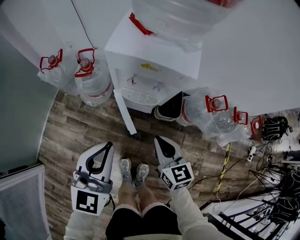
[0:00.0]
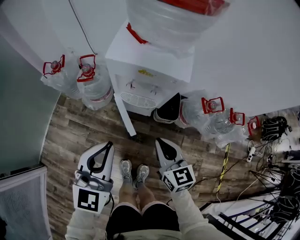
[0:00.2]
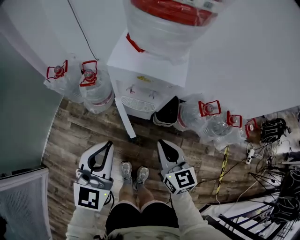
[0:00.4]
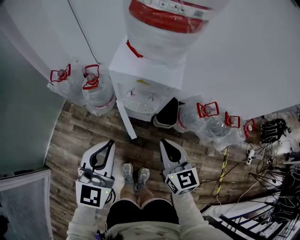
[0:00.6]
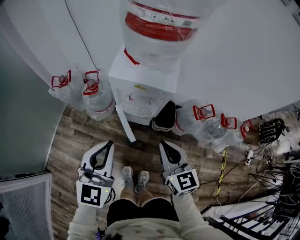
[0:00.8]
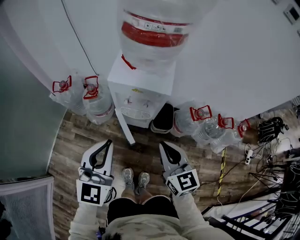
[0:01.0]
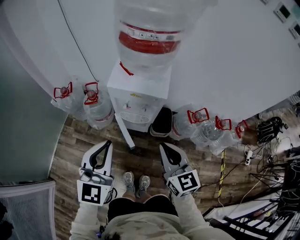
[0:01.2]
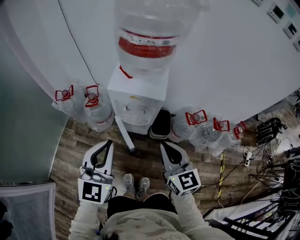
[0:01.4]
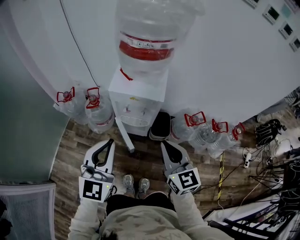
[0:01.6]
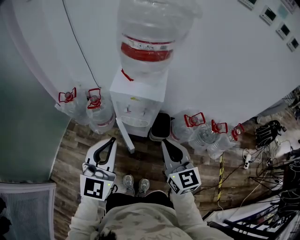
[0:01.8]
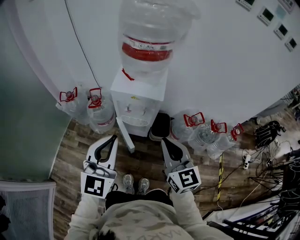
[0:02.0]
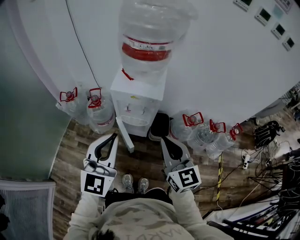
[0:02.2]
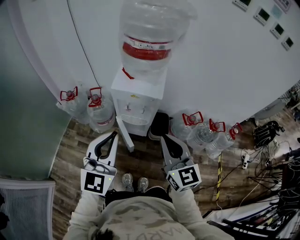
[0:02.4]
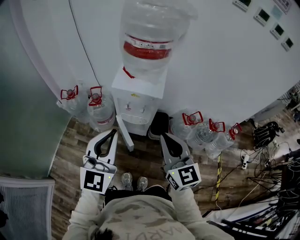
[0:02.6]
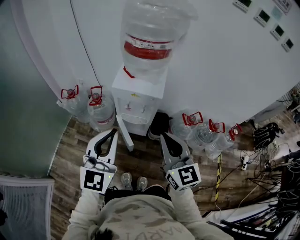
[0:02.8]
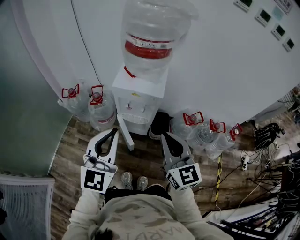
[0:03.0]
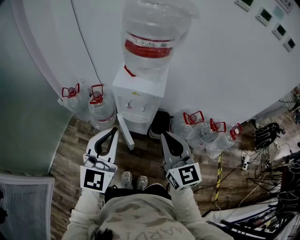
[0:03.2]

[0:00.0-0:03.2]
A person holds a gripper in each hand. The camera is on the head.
0:00.0 to 0:01.6: Both grippers move upward, about 25 cm.
0:01.6 to 0:03.2: The left gripper shifts by about 5 cm. Meanwhile the right gripper goes about 5 cm upward.

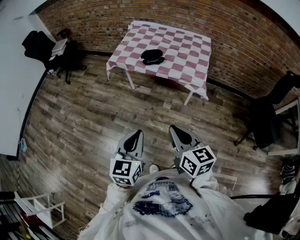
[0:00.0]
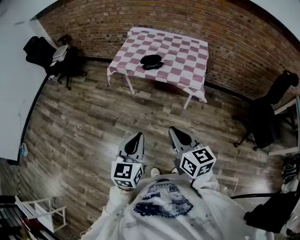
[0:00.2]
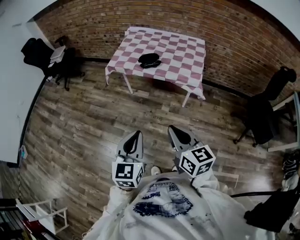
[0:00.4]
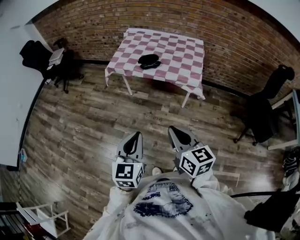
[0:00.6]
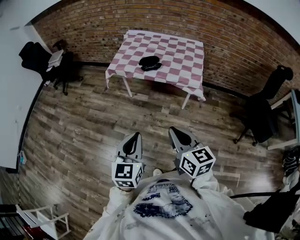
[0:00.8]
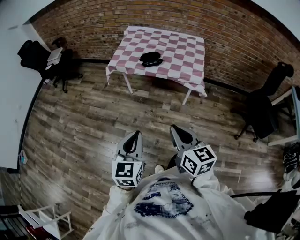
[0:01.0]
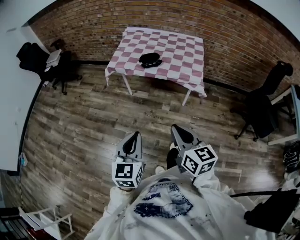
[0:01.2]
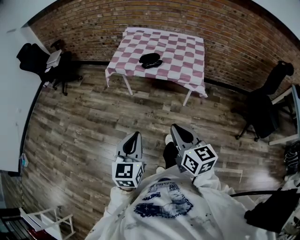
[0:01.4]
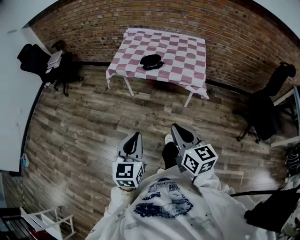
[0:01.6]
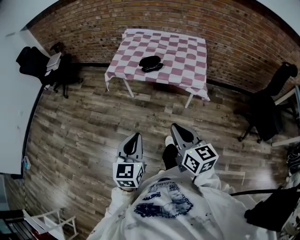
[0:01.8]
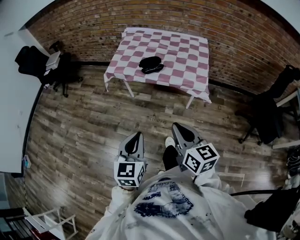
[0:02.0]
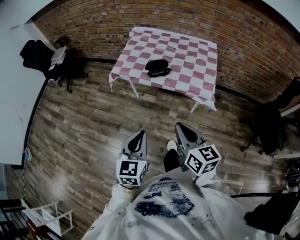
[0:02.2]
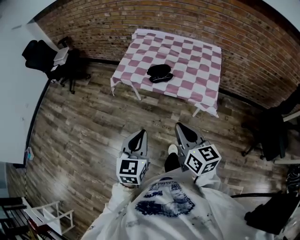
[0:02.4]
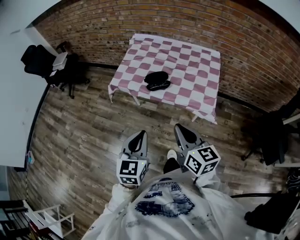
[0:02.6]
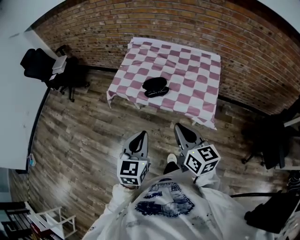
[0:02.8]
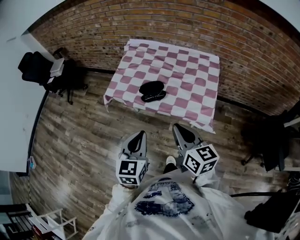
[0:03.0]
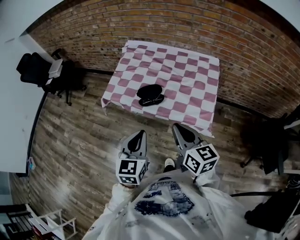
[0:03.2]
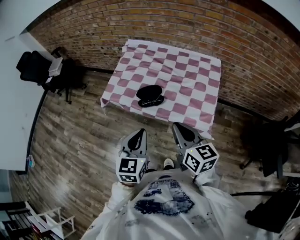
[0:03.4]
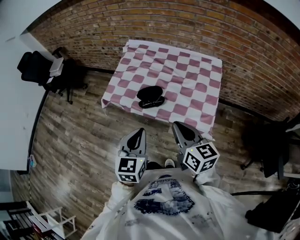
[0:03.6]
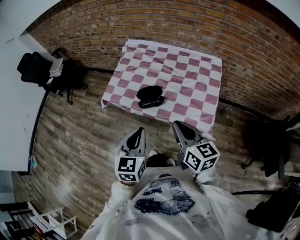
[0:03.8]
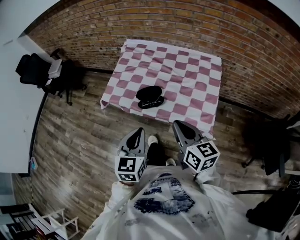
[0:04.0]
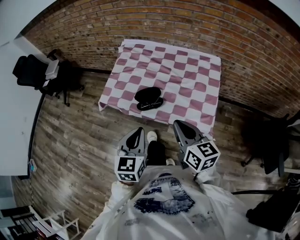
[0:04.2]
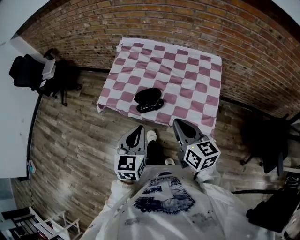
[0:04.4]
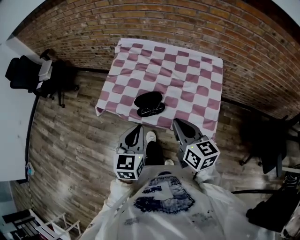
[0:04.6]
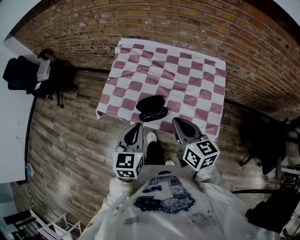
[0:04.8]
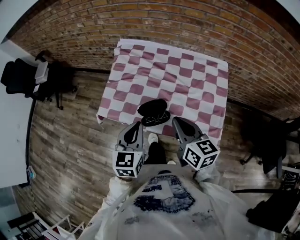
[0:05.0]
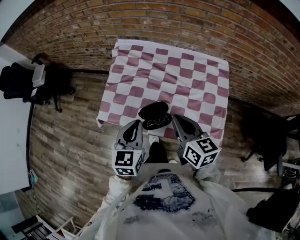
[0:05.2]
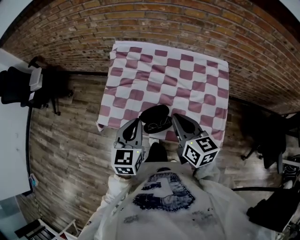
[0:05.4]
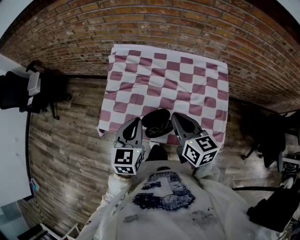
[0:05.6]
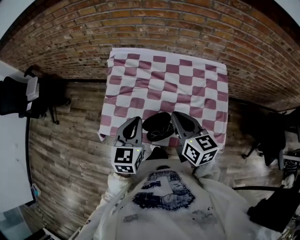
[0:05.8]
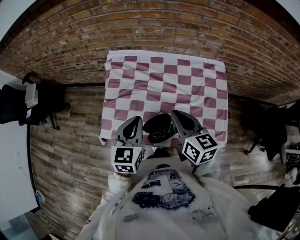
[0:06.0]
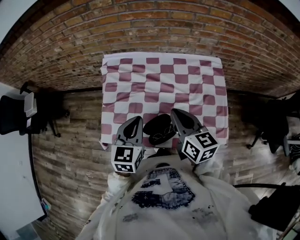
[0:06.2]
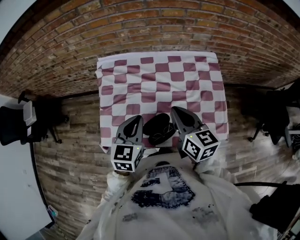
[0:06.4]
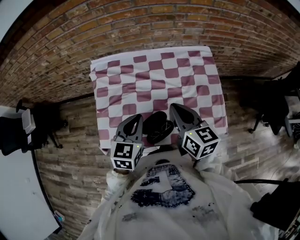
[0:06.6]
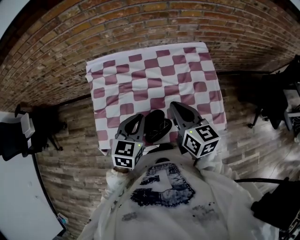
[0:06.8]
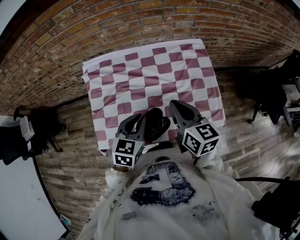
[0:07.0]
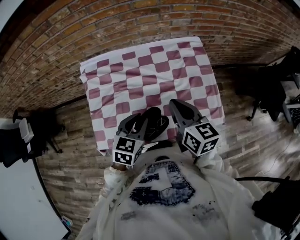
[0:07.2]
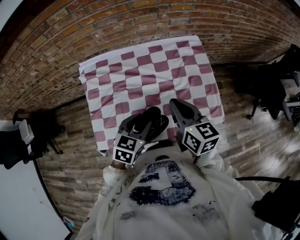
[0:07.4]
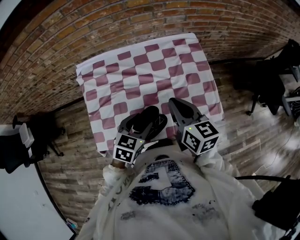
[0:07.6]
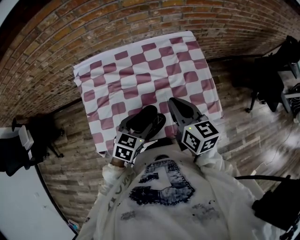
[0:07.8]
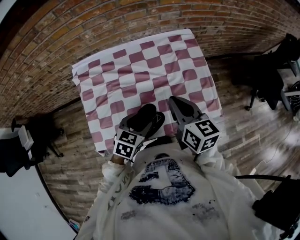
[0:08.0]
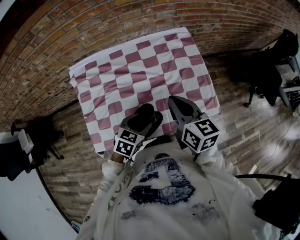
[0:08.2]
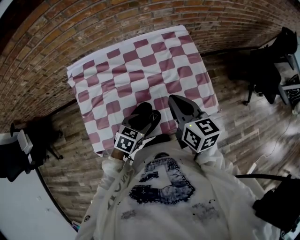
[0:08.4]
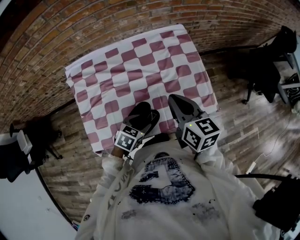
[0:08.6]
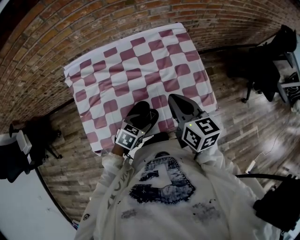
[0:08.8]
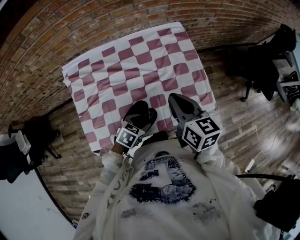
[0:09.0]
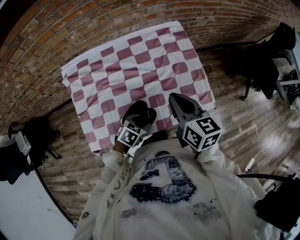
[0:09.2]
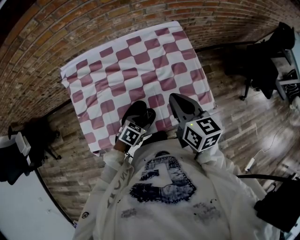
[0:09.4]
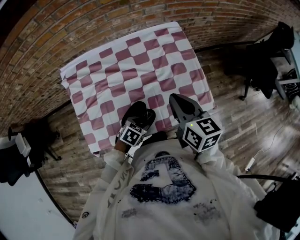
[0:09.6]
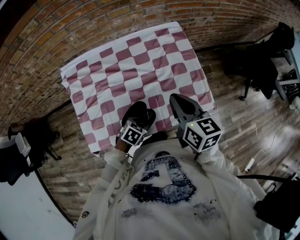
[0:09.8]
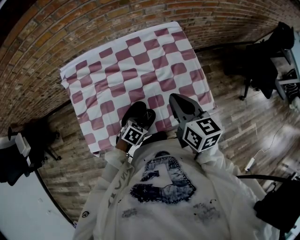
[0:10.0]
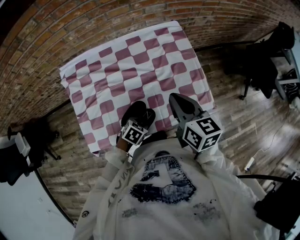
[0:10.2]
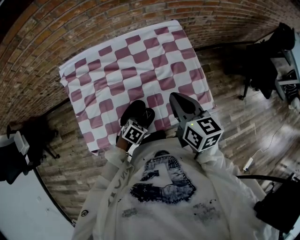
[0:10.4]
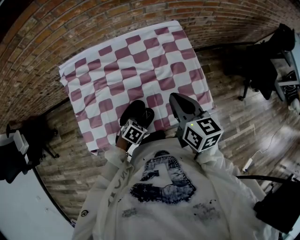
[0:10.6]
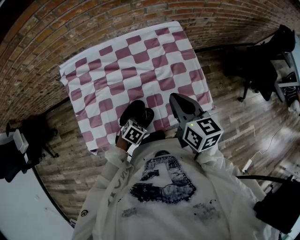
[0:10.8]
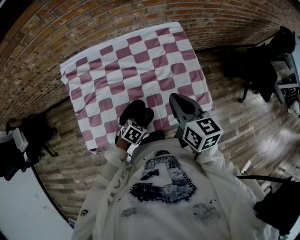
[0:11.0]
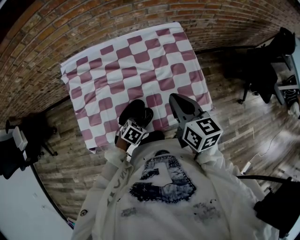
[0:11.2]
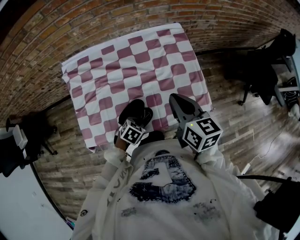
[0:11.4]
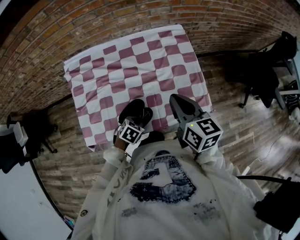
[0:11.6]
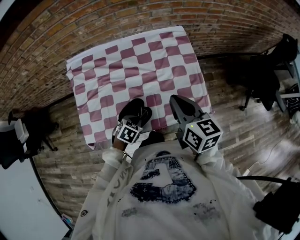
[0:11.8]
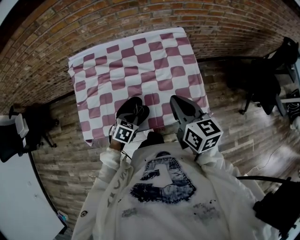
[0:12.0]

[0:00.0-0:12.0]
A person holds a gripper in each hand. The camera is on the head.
0:00.0 to 0:01.6: The left gripper is displaced to the left by some 5 cm.
0:01.6 to 0:03.0: The two grippers go some 30 cm forward.
0:03.0 to 0:04.4: Both grippers move forward, approximately 10 cm.
0:04.4 to 0:06.0: Both grippers move forward, roughly 25 cm.
0:06.0 to 0:07.6: The left gripper heads downward, covering some 10 cm, rotates approximately 40 degrees, and opens; the right gripper shifts by some 5 cm.
0:07.6 to 0:09.0: The right gripper ends up some 5 cm from where it was, while the left gripper travels downward by some 10 cm, and changes its angle by roughly 20 degrees.
0:09.0 to 0:10.4: The left gripper shifts about 5 cm downward, and closes its fingers.
0:10.4 to 0:12.0: The left gripper goes some 5 cm upward.

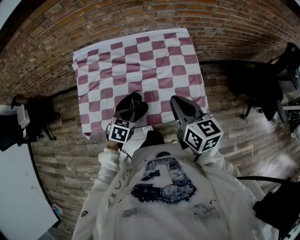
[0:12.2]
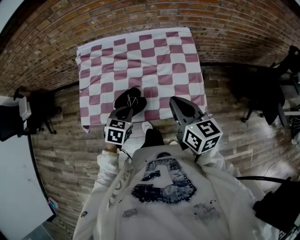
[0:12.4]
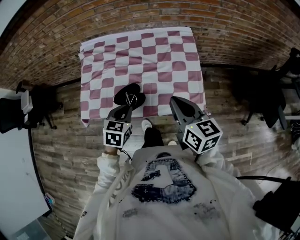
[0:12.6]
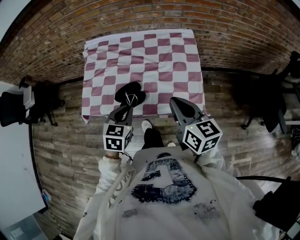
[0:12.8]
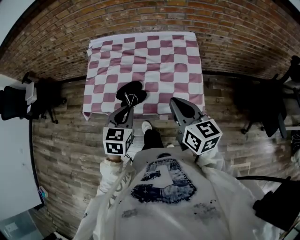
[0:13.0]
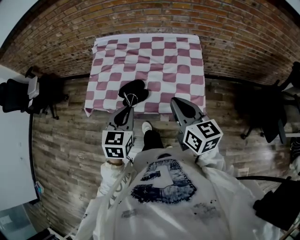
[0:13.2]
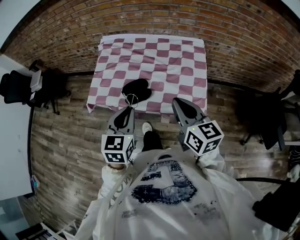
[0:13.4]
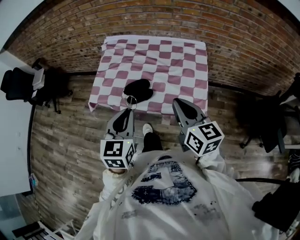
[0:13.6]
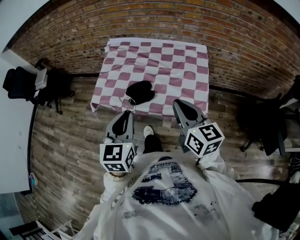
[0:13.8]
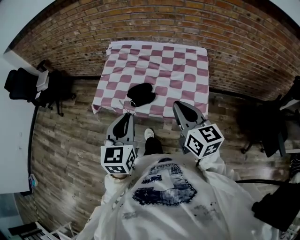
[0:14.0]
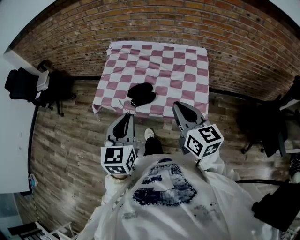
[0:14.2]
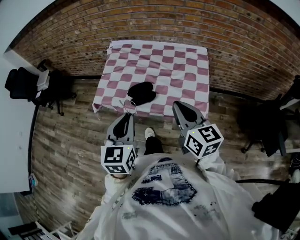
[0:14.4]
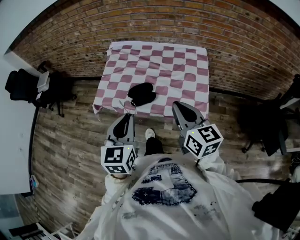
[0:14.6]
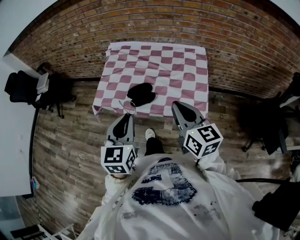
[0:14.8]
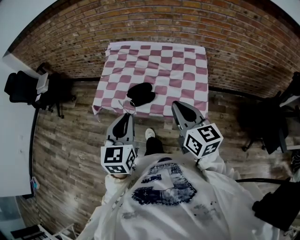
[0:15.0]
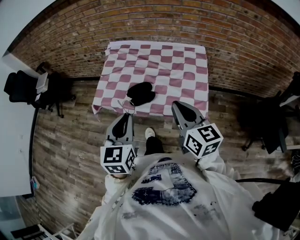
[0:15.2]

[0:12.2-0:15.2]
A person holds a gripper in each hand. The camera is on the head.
0:12.2 to 0:13.8: The right gripper shifts roughly 15 cm backward and upward. The left gripper travels upward and backward by approximately 30 cm, and points its fingers approximately 40 degrees further upward.
0:13.8 to 0:15.2: The grippers make only small movements.

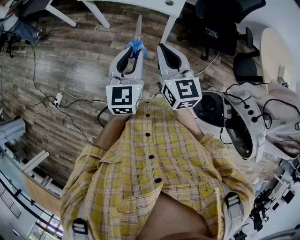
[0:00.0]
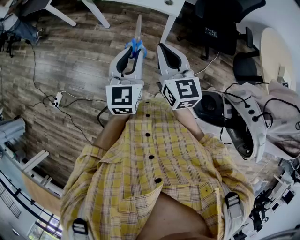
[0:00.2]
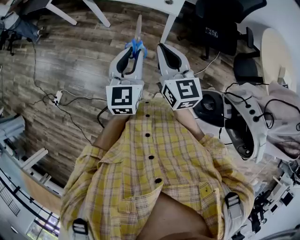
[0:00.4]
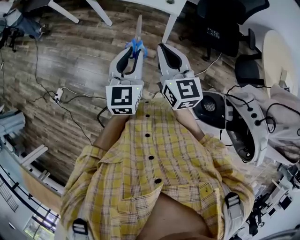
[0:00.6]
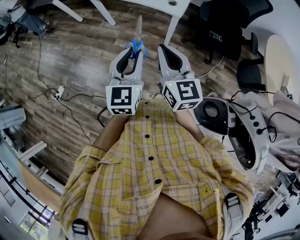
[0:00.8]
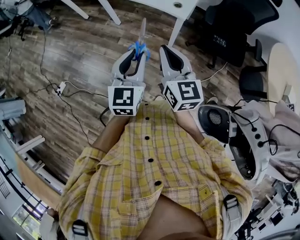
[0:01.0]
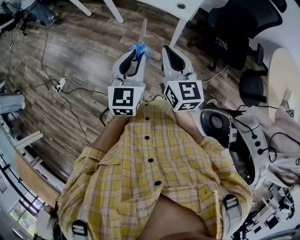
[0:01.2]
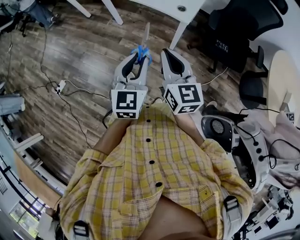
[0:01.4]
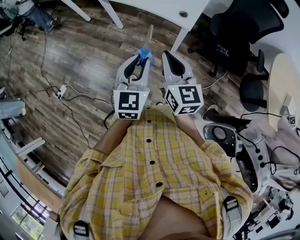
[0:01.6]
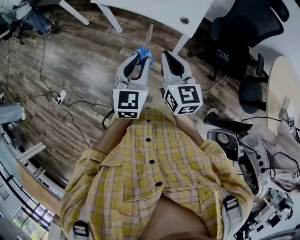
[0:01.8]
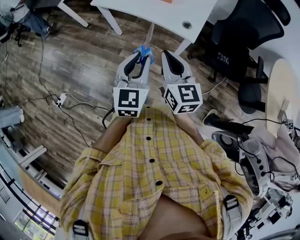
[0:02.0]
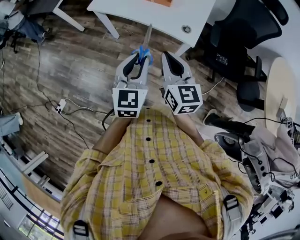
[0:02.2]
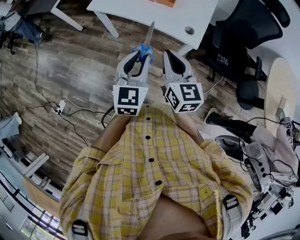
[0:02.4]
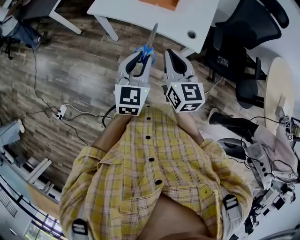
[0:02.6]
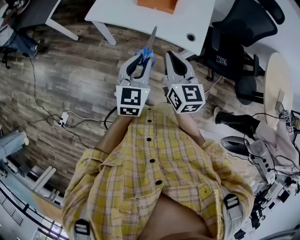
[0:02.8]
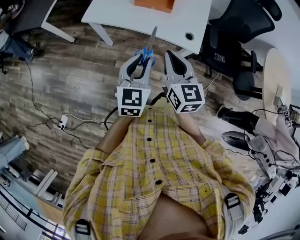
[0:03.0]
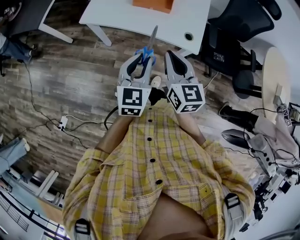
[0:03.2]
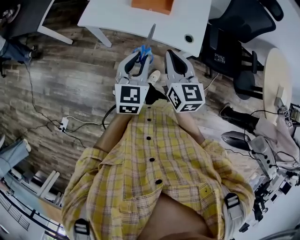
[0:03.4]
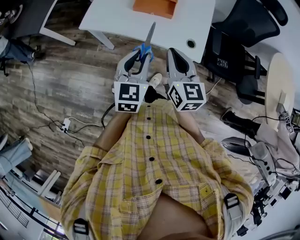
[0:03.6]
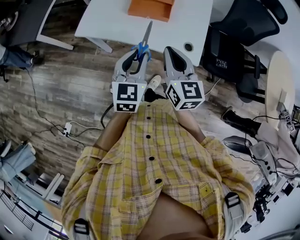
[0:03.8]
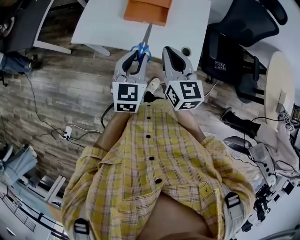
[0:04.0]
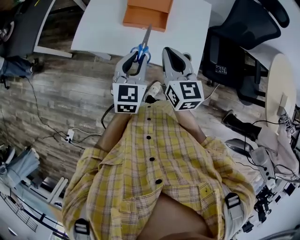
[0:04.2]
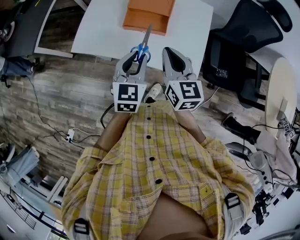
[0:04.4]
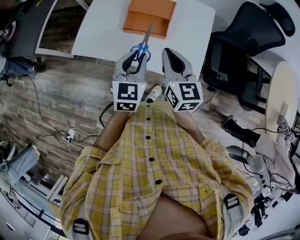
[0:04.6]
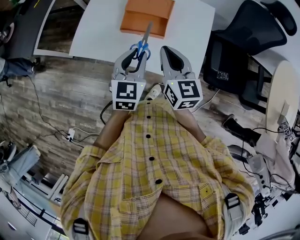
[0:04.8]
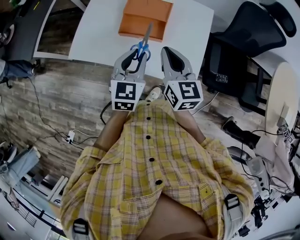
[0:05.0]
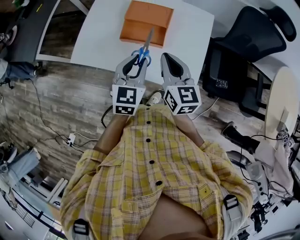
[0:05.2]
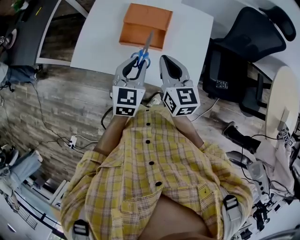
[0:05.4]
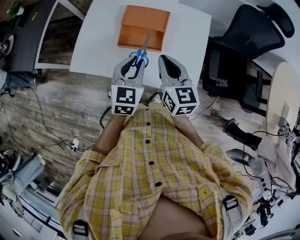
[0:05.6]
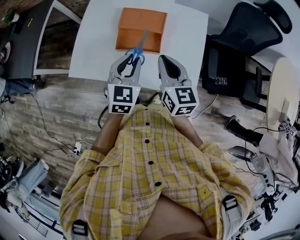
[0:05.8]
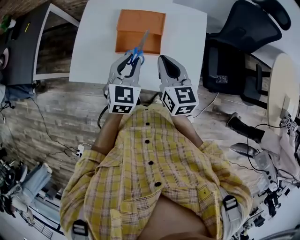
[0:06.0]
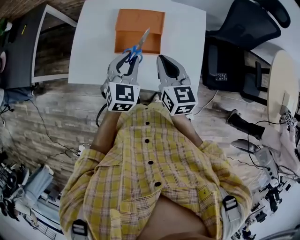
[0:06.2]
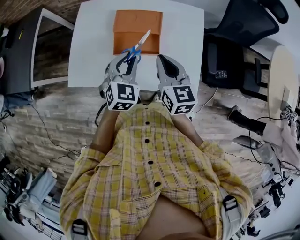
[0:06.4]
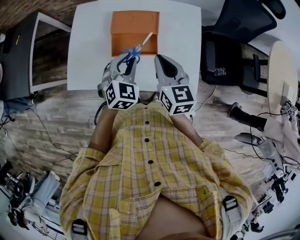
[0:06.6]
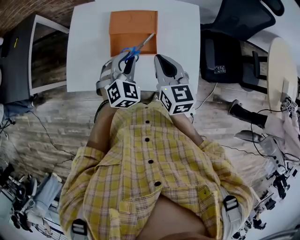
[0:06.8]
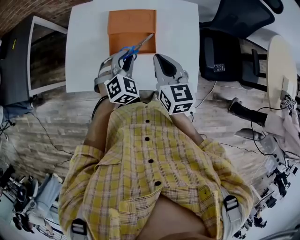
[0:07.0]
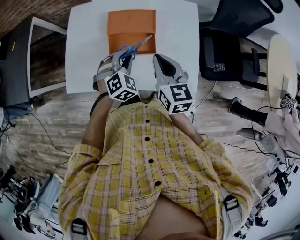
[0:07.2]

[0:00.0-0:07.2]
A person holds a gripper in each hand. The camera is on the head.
0:00.0 to 0:01.4: The grippers make only small movements.
0:01.4 to 0:02.8: Both grippers travel together forward and to the left, roughly 30 cm.
0:02.8 to 0:04.4: The grippers both shift forward by about 20 cm.
0:04.4 to 0:05.8: Both grippers move forward, roughly 10 cm.
0:05.8 to 0:07.2: The left gripper goes approximately 10 cm downward and forward, and changes its angle by some 40 degrees.
